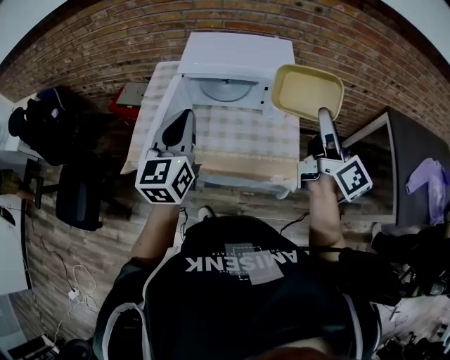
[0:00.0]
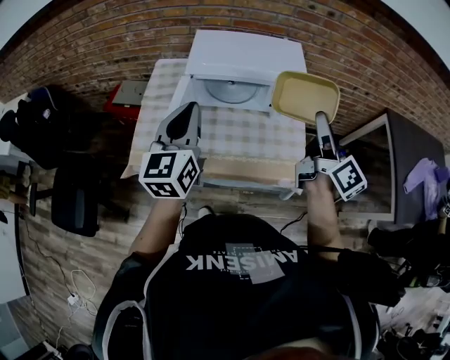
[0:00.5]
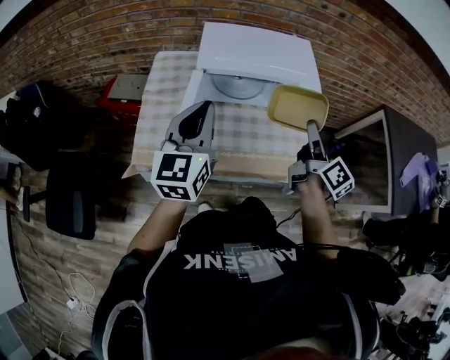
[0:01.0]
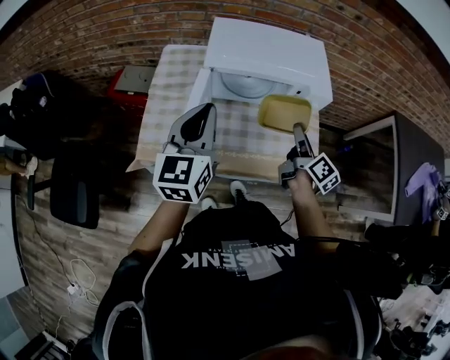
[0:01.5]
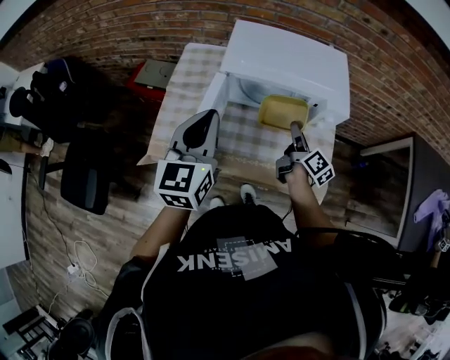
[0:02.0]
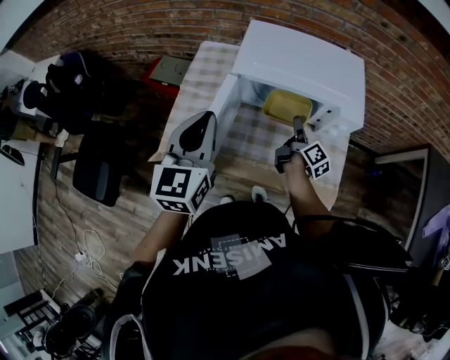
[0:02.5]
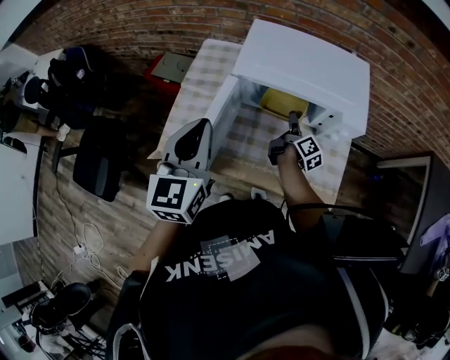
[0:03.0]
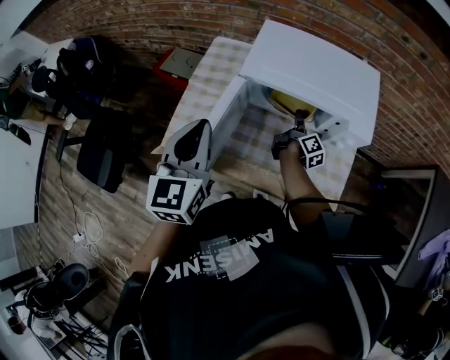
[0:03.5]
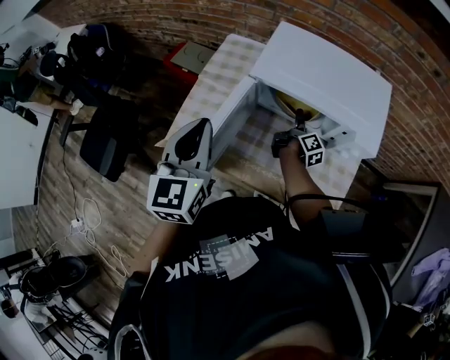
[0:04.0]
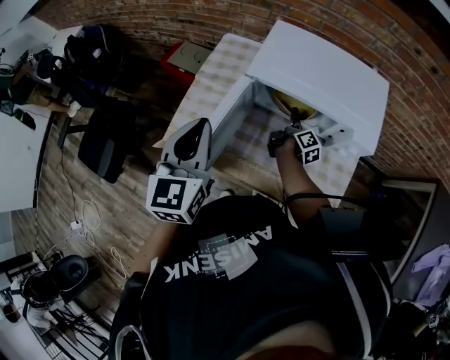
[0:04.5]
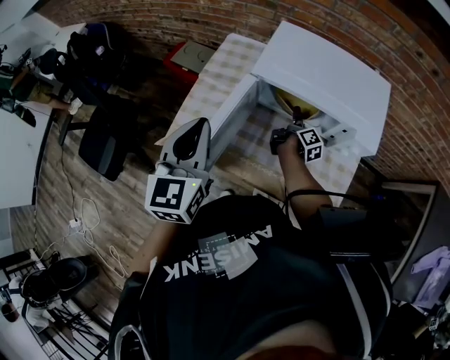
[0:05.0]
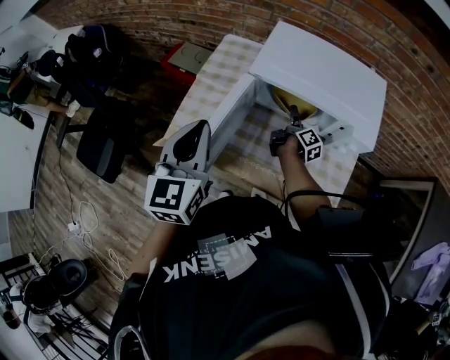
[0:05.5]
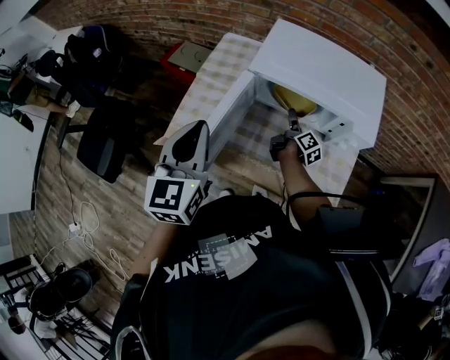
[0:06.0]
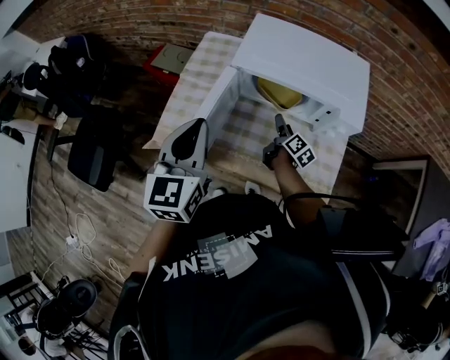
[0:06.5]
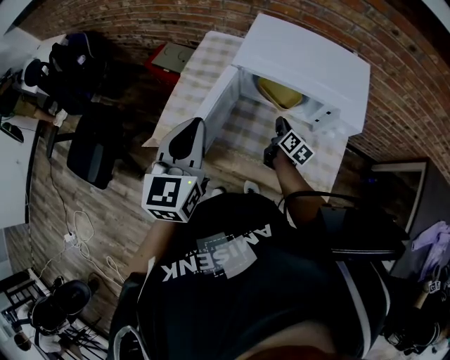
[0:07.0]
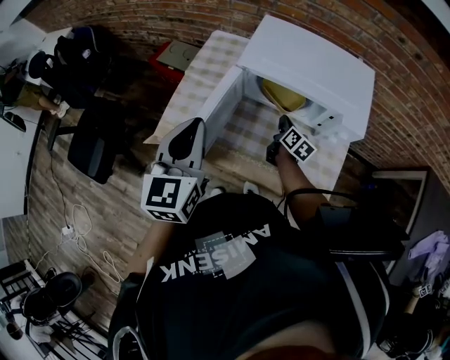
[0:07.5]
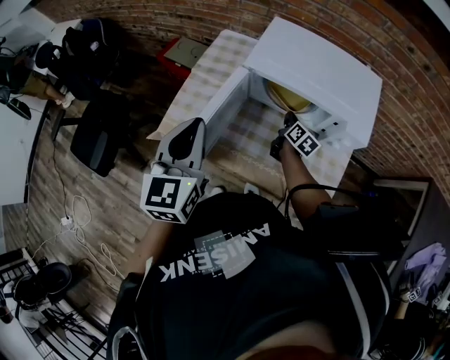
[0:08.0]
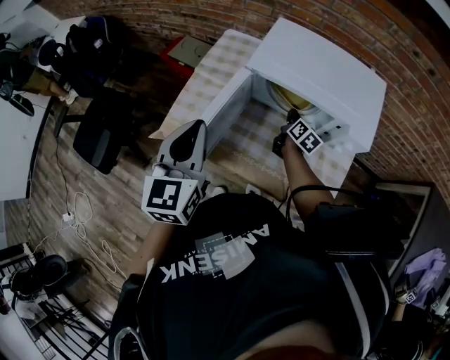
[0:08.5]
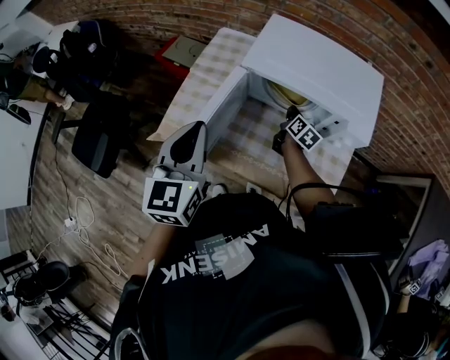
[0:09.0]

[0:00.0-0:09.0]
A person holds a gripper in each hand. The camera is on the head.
0:00.0 to 0:02.0: The right gripper travels downward, to the left and forward by approximately 35 cm, and changes its angle by roughly 30 degrees. The left gripper moves to the left and forward, approximately 15 cm.
0:02.0 to 0:04.5: The right gripper shifts approximately 20 cm forward, downward and to the left.
0:04.5 to 0:07.0: The right gripper is displaced backward by about 5 cm, changes its angle by roughly 30 degrees, and closes its fingers.
0:07.0 to 0:09.0: The right gripper heads forward, covering roughly 5 cm.

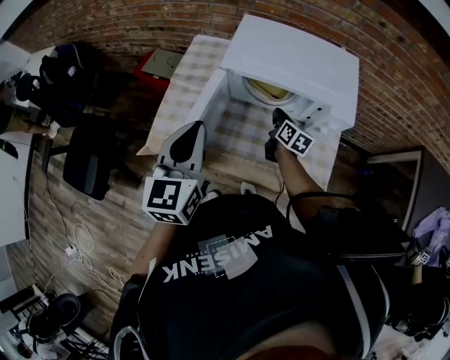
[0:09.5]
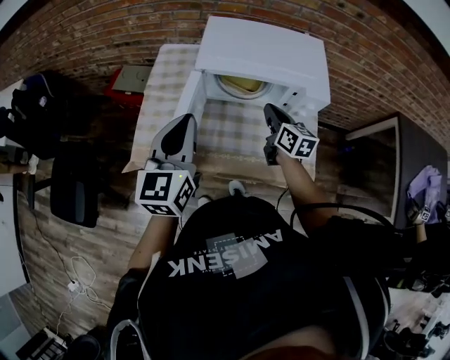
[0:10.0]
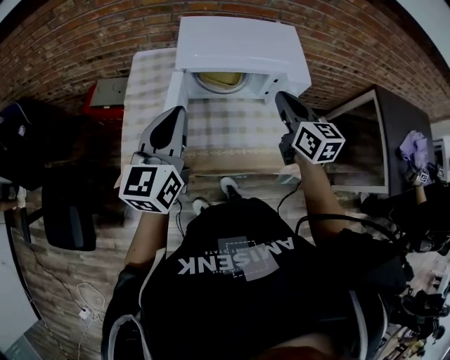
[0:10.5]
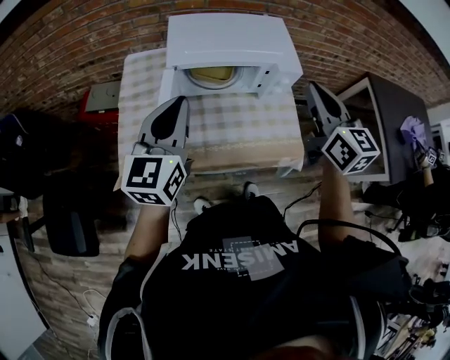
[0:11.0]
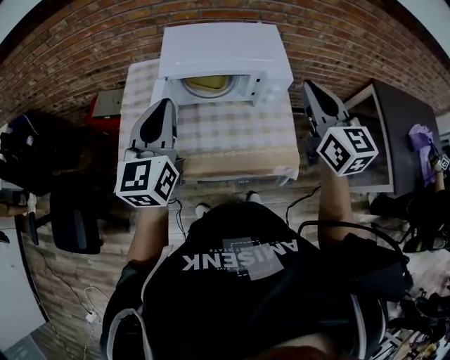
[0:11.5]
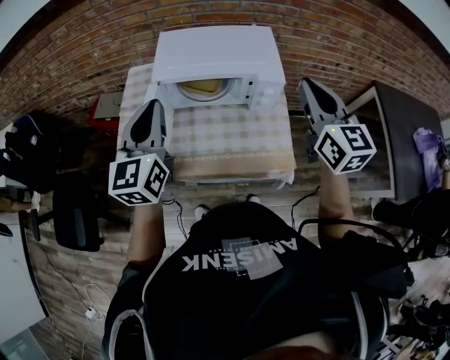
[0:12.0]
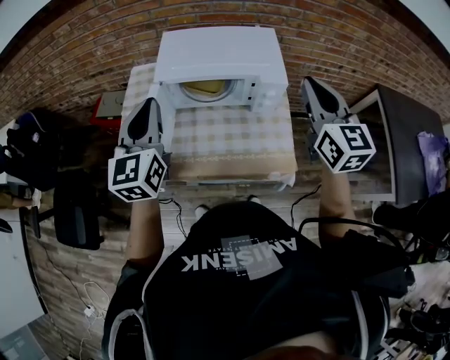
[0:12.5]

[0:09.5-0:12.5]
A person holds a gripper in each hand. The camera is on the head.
0:09.5 to 0:11.0: The left gripper swivels about 20 degrees. The right gripper travels upward and backward by some 40 cm, and turns by about 40 degrees.
0:11.0 to 0:12.5: The right gripper travels to the right by roughly 10 cm.

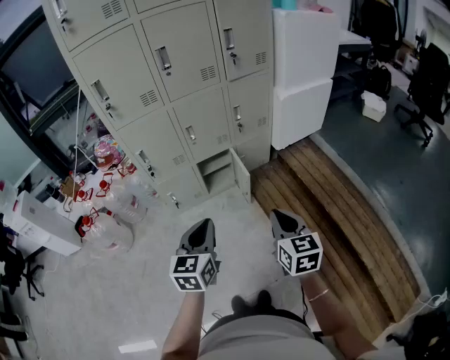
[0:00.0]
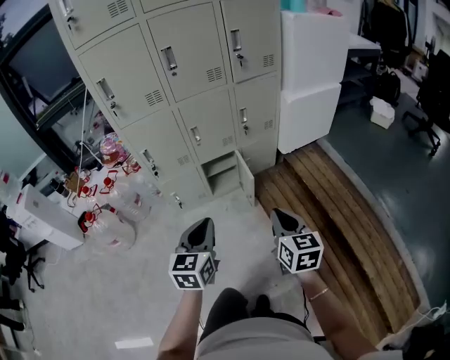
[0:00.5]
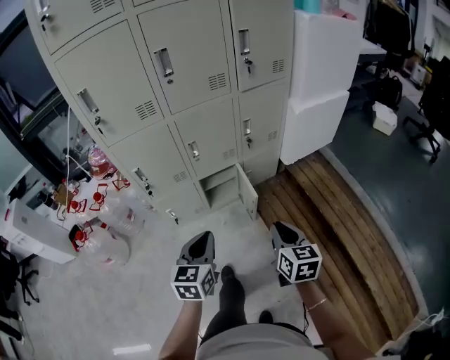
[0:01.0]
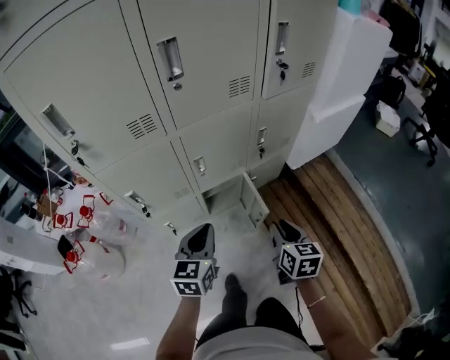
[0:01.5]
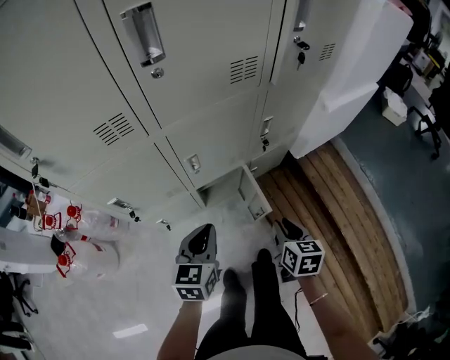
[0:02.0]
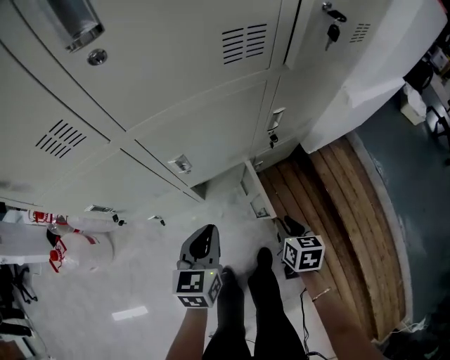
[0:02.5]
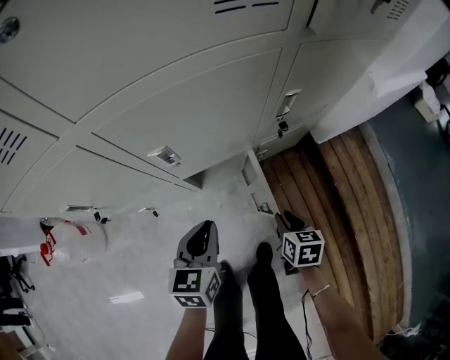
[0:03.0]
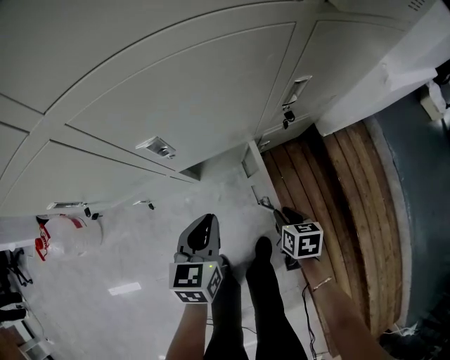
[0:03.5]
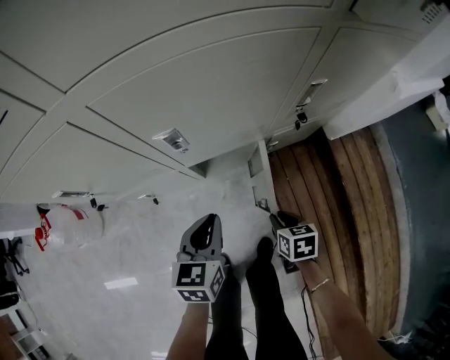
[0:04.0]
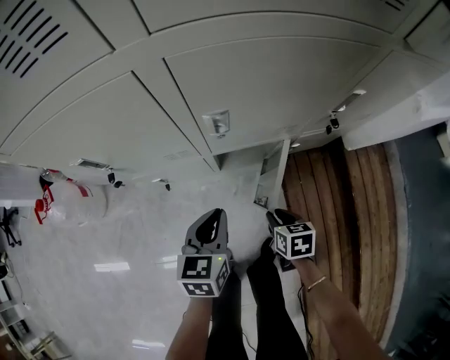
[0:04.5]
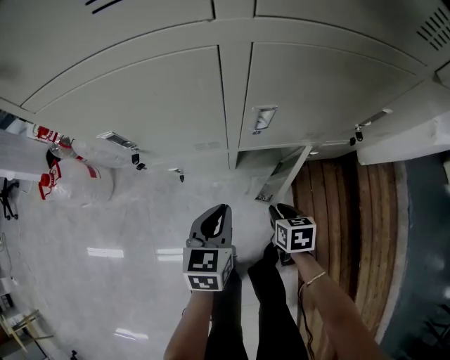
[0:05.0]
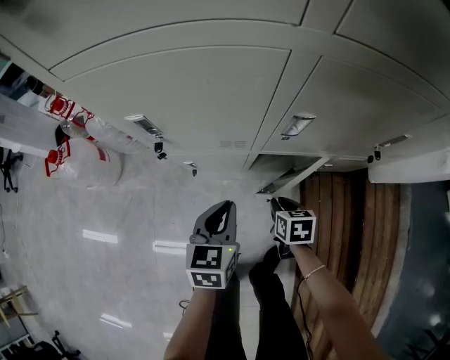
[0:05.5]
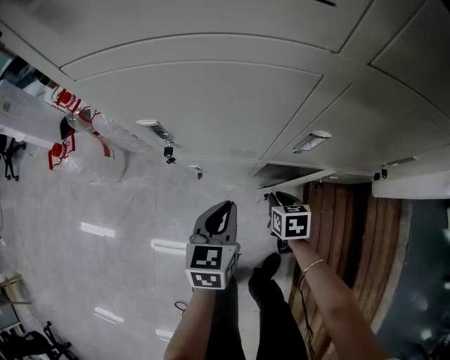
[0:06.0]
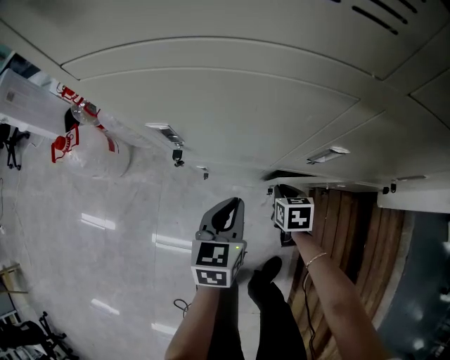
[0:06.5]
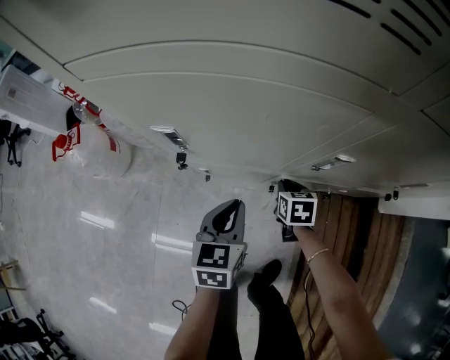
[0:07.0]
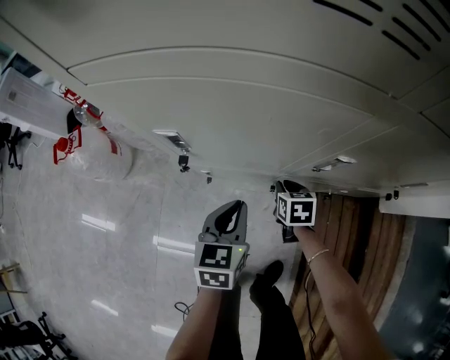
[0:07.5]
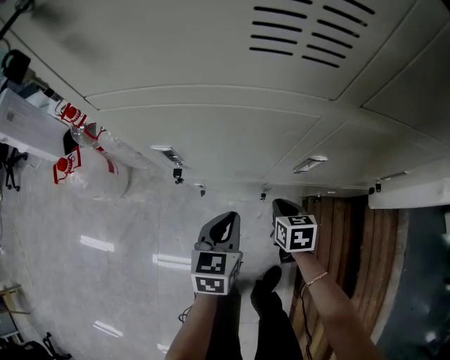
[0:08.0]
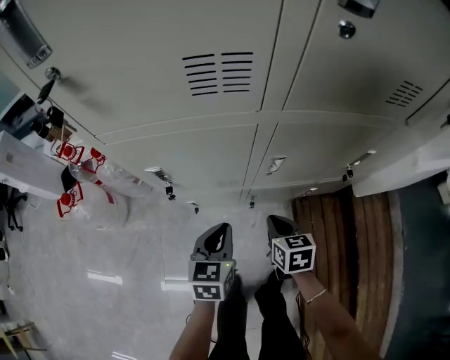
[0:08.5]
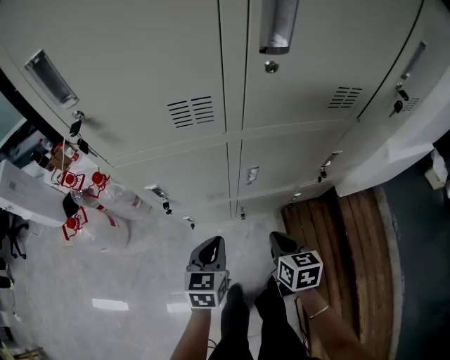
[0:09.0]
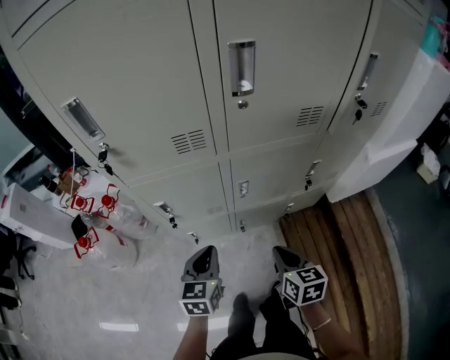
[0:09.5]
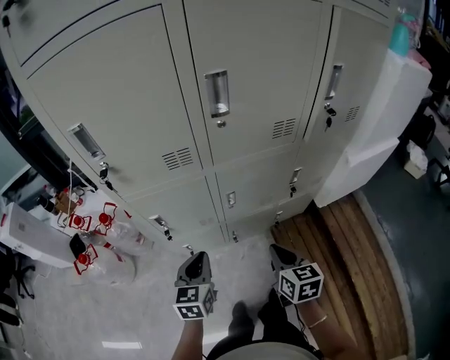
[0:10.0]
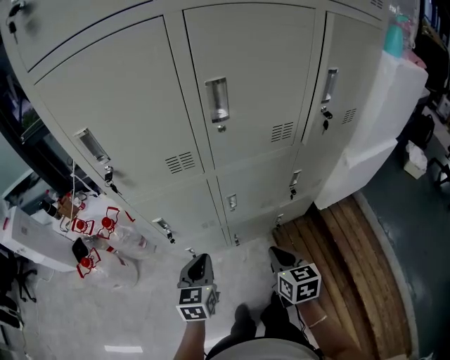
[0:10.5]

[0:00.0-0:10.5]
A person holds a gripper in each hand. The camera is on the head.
0:00.0 to 0:02.0: The pair of grippers is taken forward, approximately 40 cm. The right gripper travels downward by some 20 cm, rotates about 20 degrees, and opens.
0:02.0 to 0:04.0: The left gripper travels downward and forward by approximately 20 cm; the right gripper heads downward, covering some 30 cm, and swivels about 30 degrees.
0:04.0 to 0:06.5: The right gripper goes some 30 cm to the left and forward, and swivels approximately 20 degrees. Meanwhile the left gripper shifts approximately 20 cm to the left, and rotates approximately 20 degrees.
0:06.5 to 0:08.5: The left gripper heads upward, covering roughly 10 cm. Meanwhile the right gripper travels upward and backward by about 20 cm.
0:08.5 to 0:10.5: The two grippers go about 25 cm upward and backward.

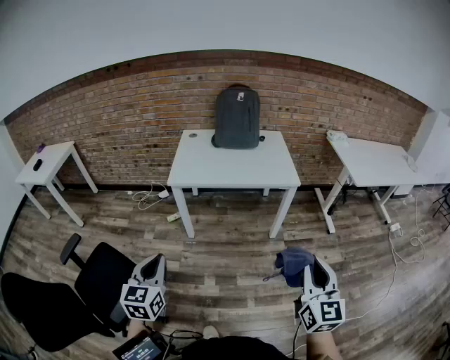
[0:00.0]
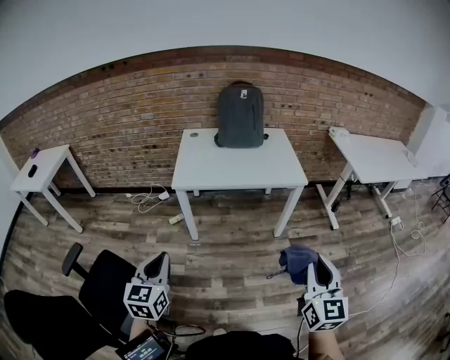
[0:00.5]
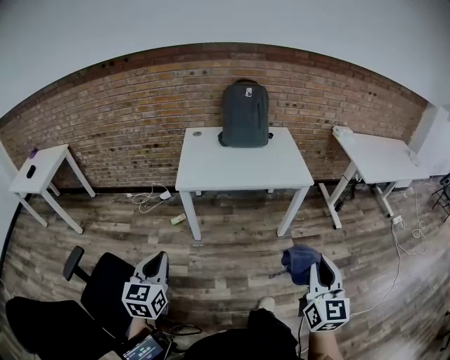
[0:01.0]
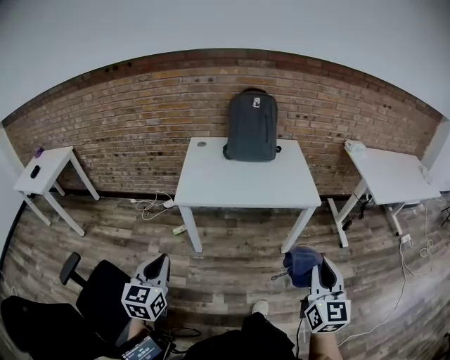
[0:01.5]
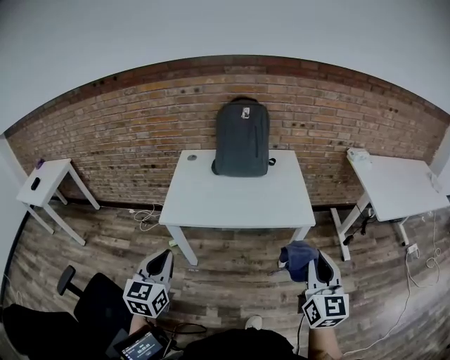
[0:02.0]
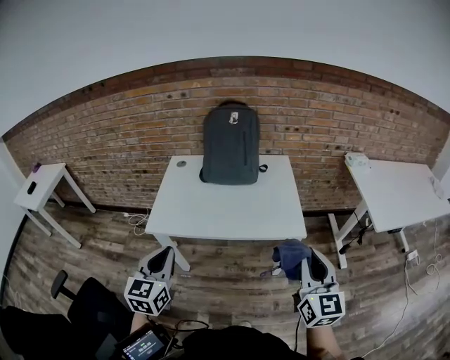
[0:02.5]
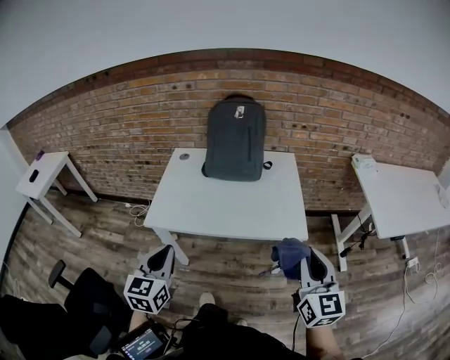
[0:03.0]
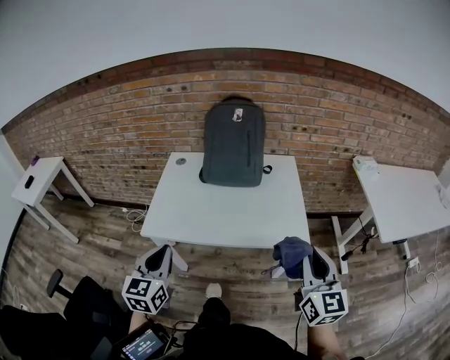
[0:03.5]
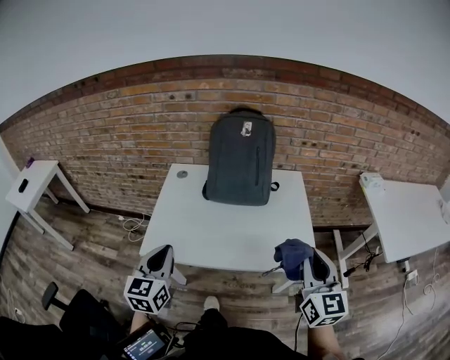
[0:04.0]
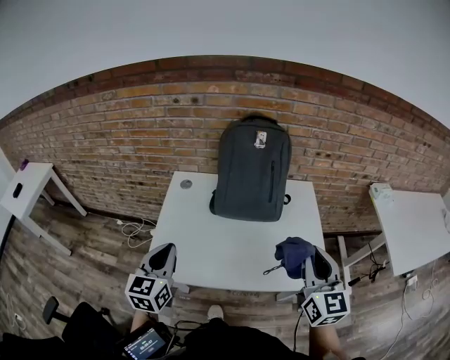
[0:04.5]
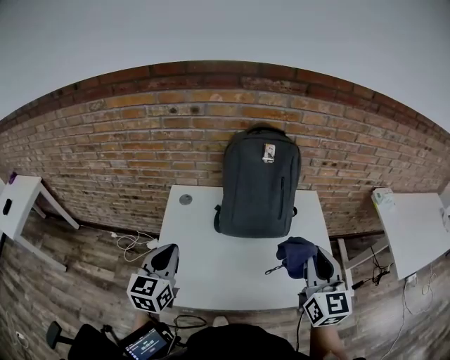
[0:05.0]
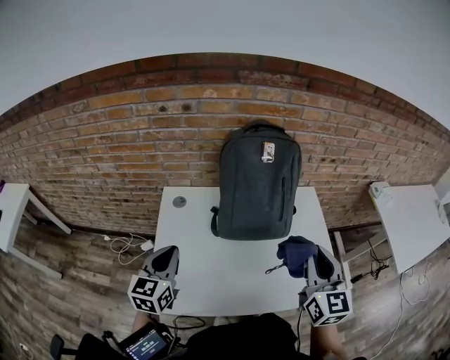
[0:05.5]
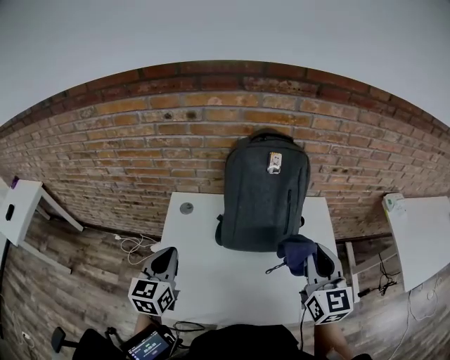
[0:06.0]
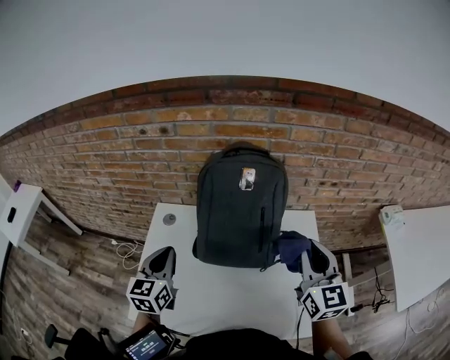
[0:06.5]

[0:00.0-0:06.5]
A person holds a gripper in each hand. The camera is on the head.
0:00.0 to 0:02.0: Both grippers travel together forward, roughly 25 cm.
0:02.0 to 0:04.5: Both grippers move forward, roughly 30 cm.
0:04.5 to 0:06.5: The grippers both shift forward by approximately 20 cm.
